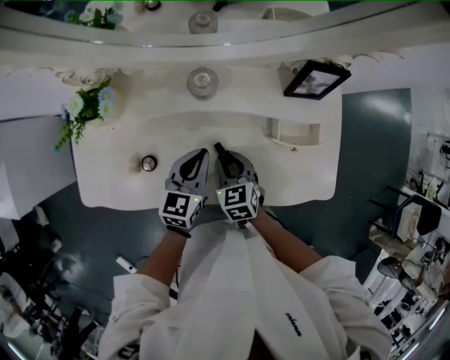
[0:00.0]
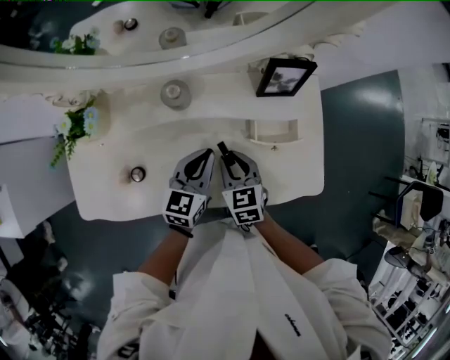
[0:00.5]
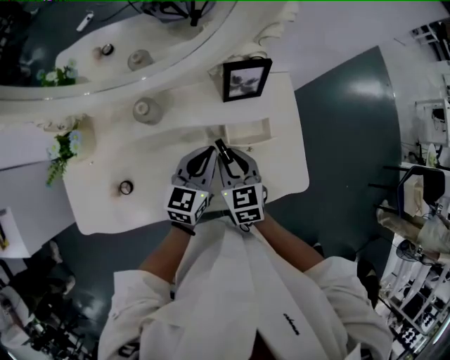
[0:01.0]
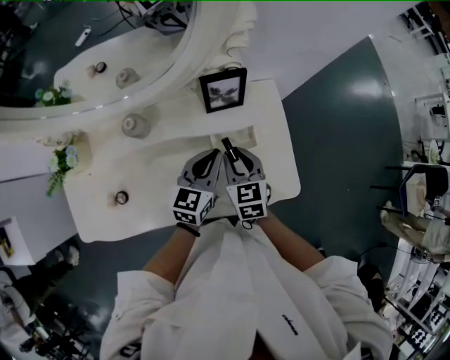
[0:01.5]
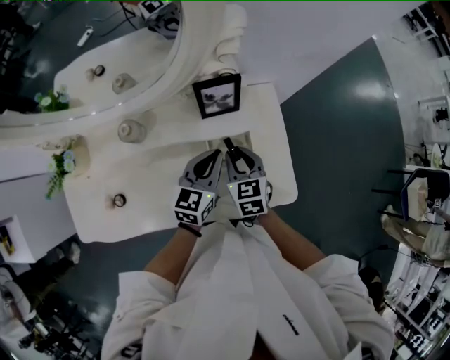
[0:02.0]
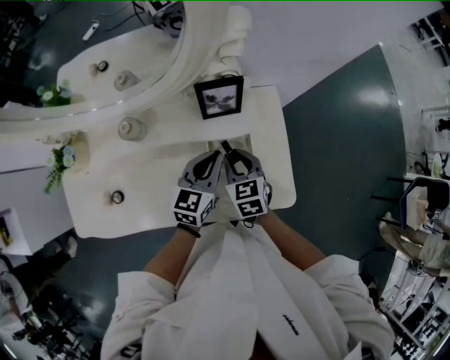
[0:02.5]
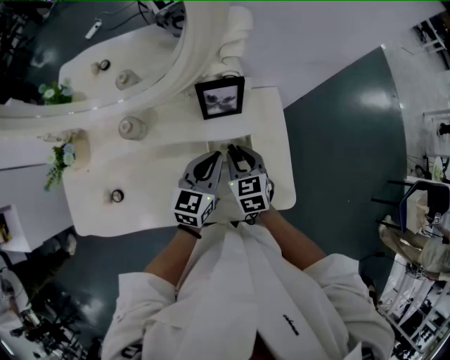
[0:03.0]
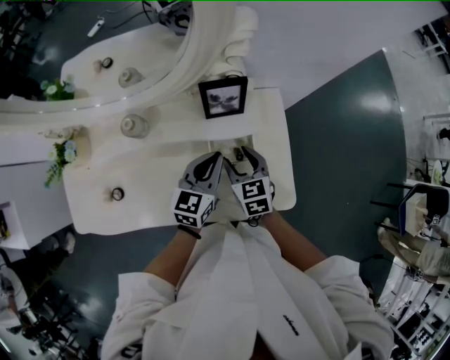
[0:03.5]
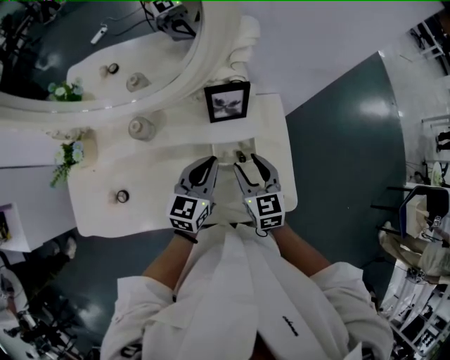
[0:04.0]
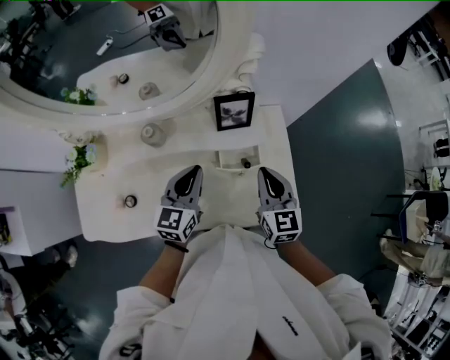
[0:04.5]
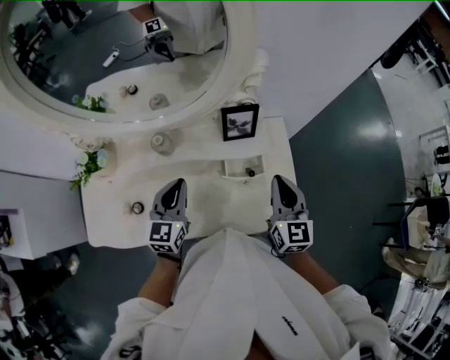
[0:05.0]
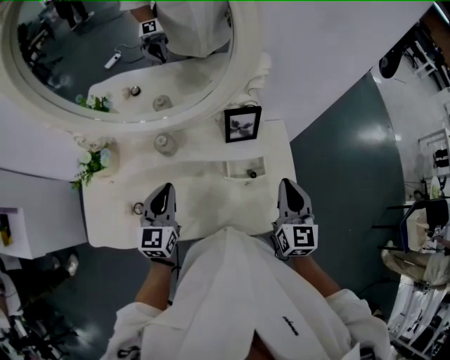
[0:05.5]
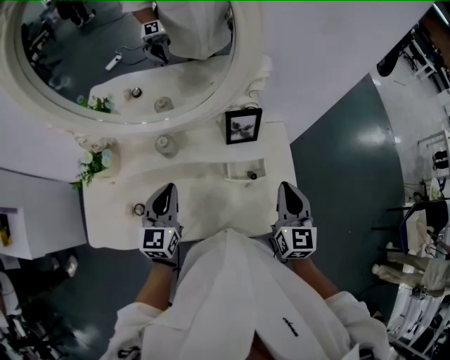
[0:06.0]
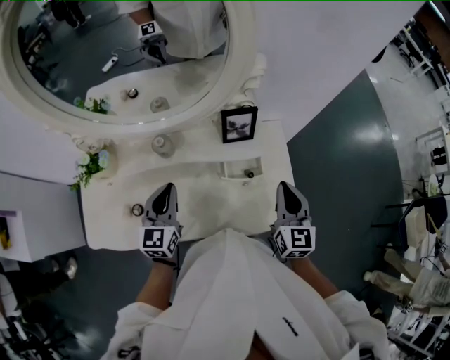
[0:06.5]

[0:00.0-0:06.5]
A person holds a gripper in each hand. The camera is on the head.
0:00.0 to 0:02.0: The right gripper heads to the right, forward and upward, covering some 25 cm; the left gripper is displaced to the right by about 25 cm.
0:02.0 to 0:04.5: The left gripper heads to the left and upward, covering approximately 10 cm, while the right gripper travels upward by some 10 cm, and opens, then closes once more.
0:04.5 to 0:06.5: The right gripper changes place by some 5 cm; the left gripper moves to the left, some 10 cm.

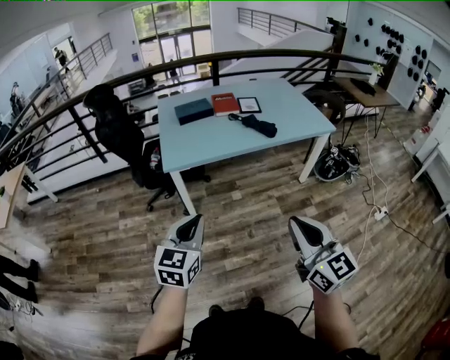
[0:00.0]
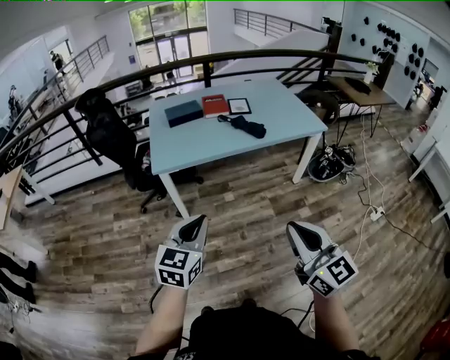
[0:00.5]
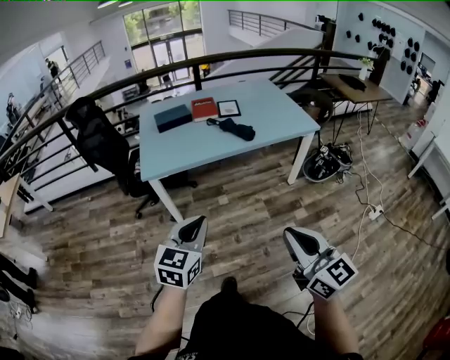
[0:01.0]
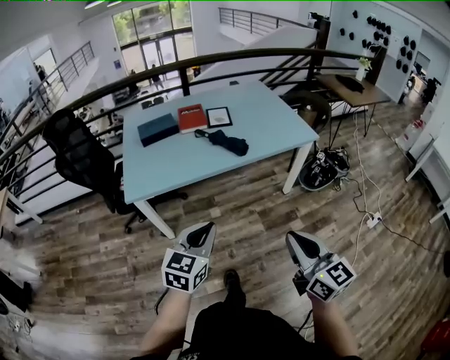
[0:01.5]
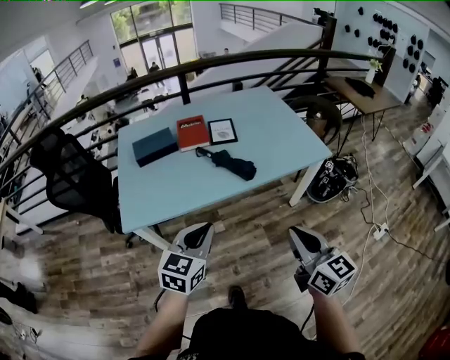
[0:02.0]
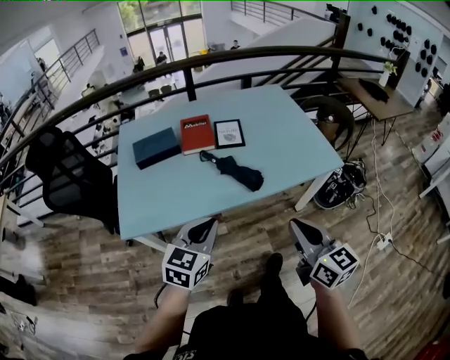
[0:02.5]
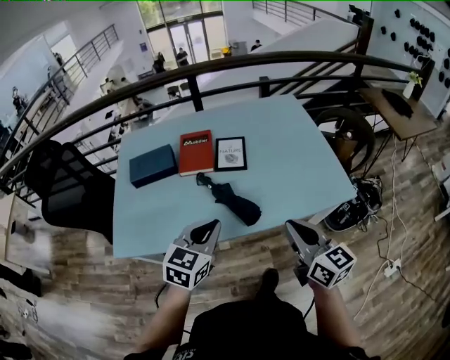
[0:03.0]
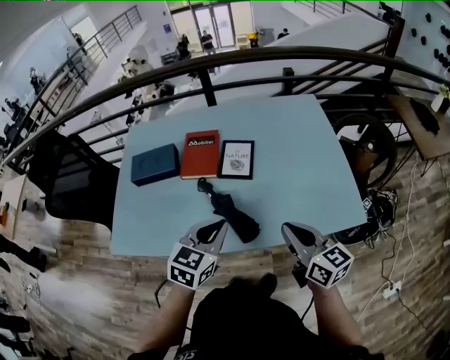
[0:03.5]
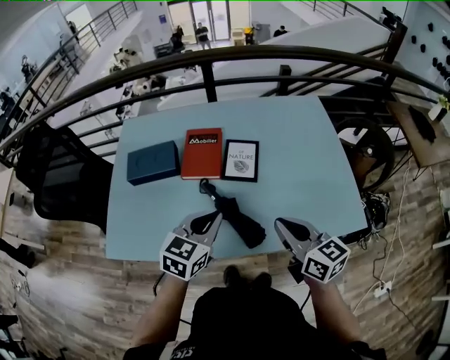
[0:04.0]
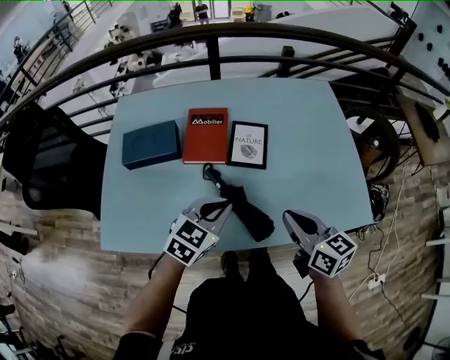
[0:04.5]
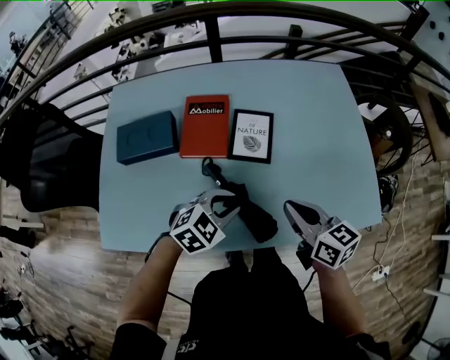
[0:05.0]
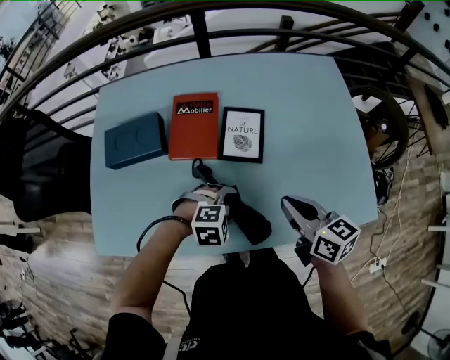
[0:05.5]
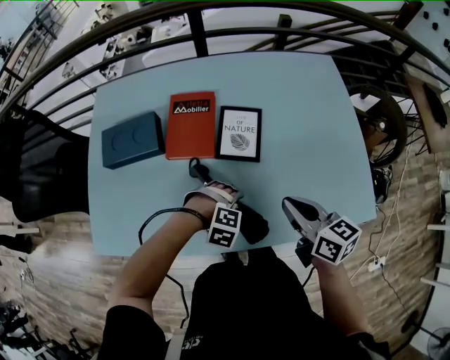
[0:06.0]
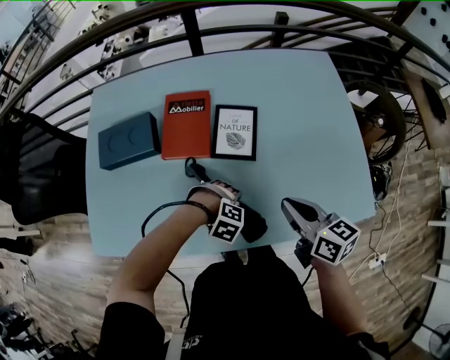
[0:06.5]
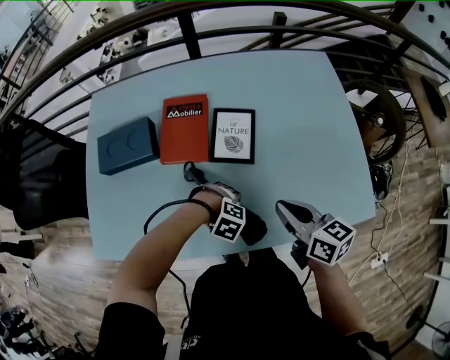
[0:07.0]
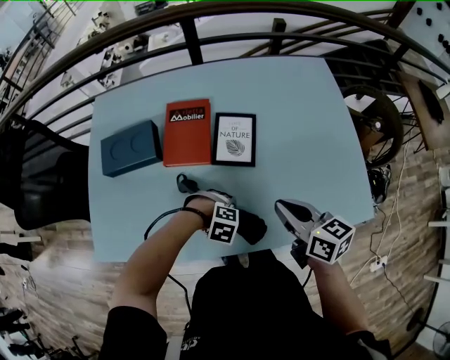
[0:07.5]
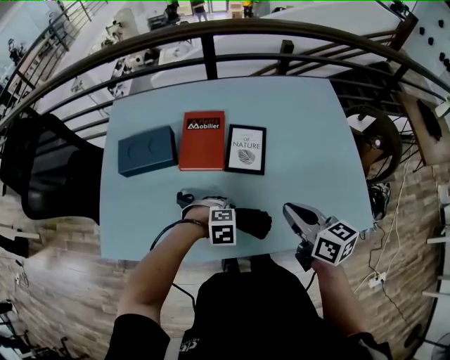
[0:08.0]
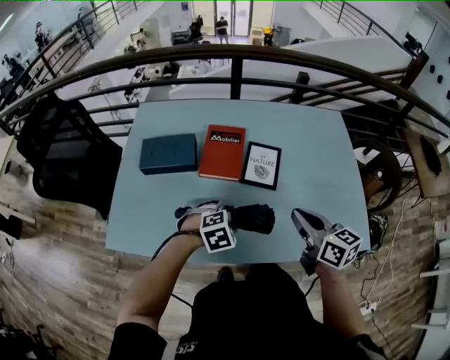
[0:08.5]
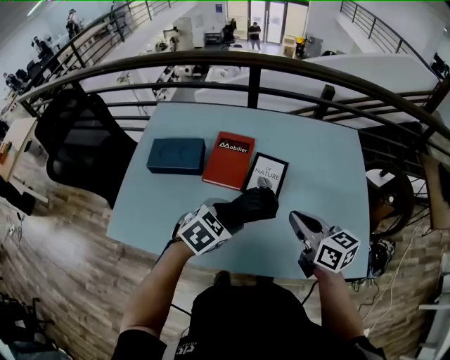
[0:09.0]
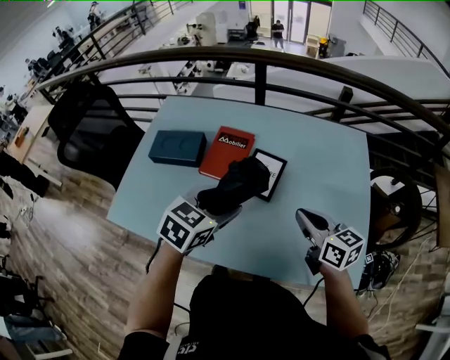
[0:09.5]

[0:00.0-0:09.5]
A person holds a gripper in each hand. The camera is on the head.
0:00.0 to 0:02.0: The grippers both shift forward and to the right by approximately 40 cm.
0:02.0 to 0:04.0: Both grippers travel together forward, approximately 40 cm. The right gripper rotates about 30 degrees.
0:04.0 to 0:05.5: The left gripper moves downward, about 20 cm, points its fingers approximately 40 degrees further downward, and opens its fingers. The right gripper heads forward and downward, covering about 15 cm.
0:05.5 to 0:07.5: The left gripper goes about 5 cm downward, and turns by roughly 20 degrees.
0:07.5 to 0:09.5: The left gripper travels upward by approximately 30 cm, and angles its fingers upward, by some 40 degrees. The right gripper moves roughly 10 cm.

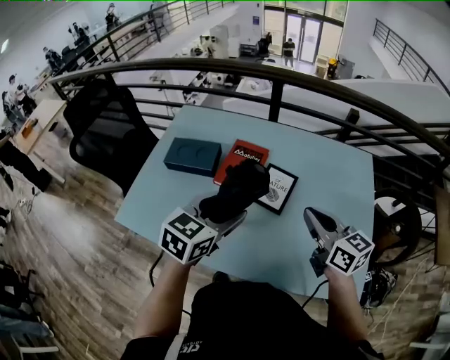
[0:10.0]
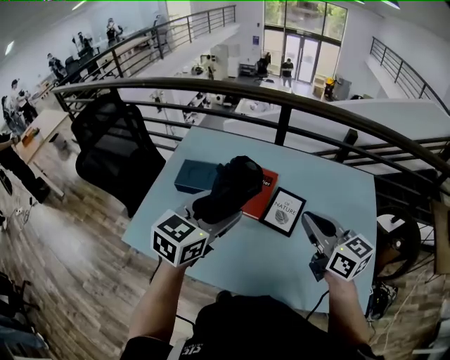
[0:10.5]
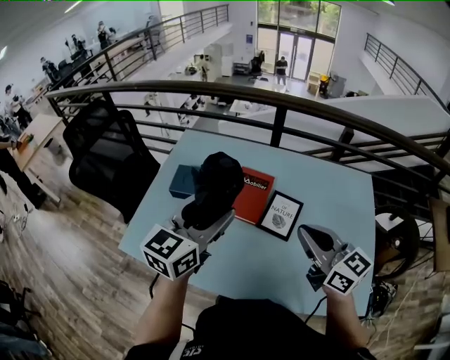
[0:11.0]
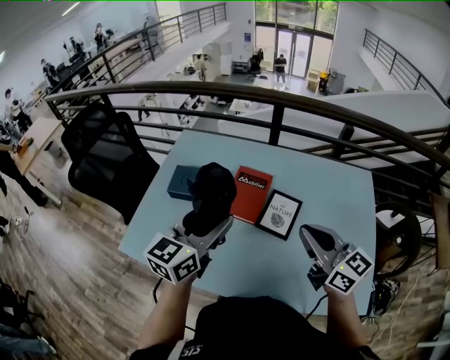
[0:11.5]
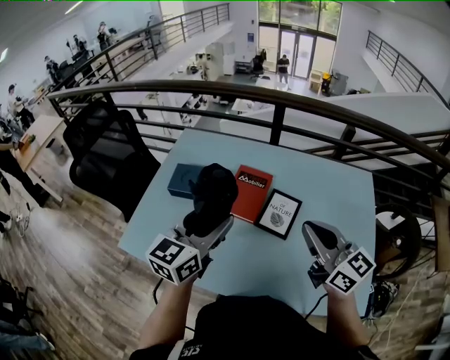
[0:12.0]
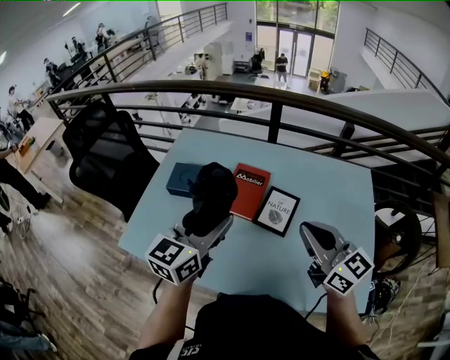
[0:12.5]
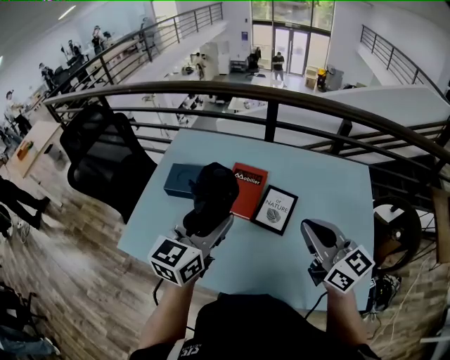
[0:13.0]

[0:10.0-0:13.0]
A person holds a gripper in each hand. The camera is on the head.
0:10.0 to 0:11.5: The left gripper is displaced to the left, upward and forward by roughly 10 cm, and rotates roughly 20 degrees, while the right gripper is displaced to the left and upward by some 10 cm.
0:11.5 to 0:13.0: The grippers stay close to where they were, moving slightly.

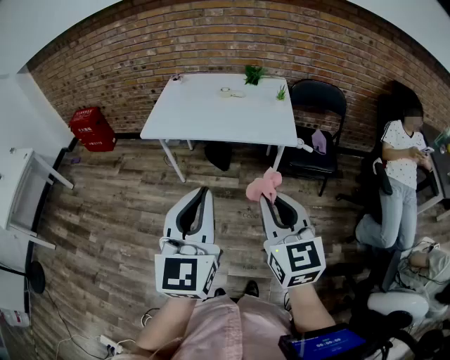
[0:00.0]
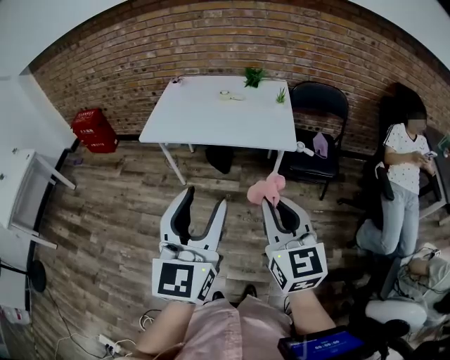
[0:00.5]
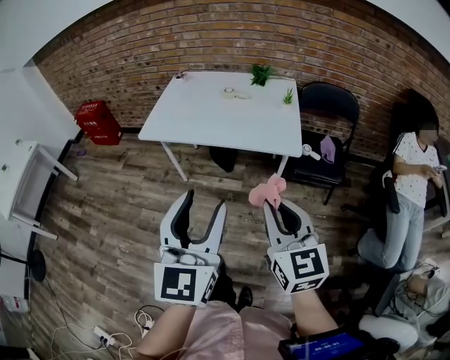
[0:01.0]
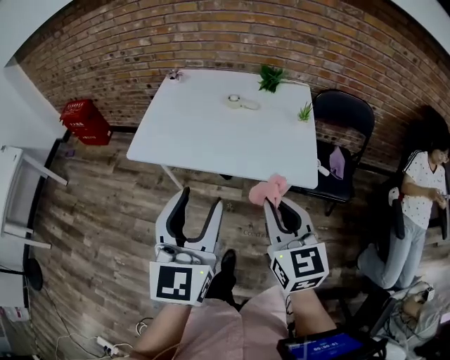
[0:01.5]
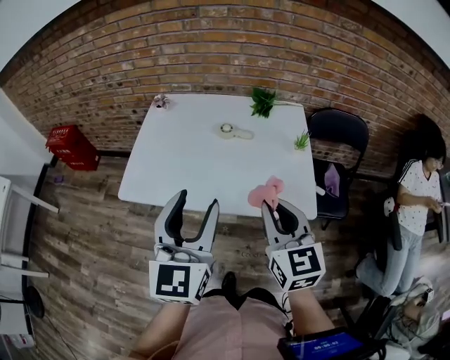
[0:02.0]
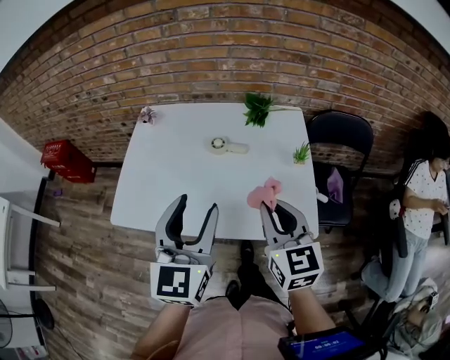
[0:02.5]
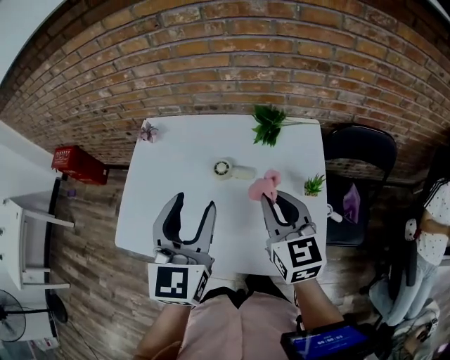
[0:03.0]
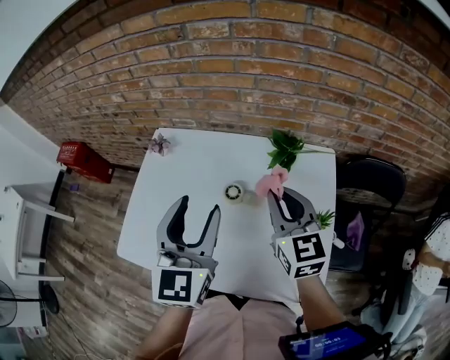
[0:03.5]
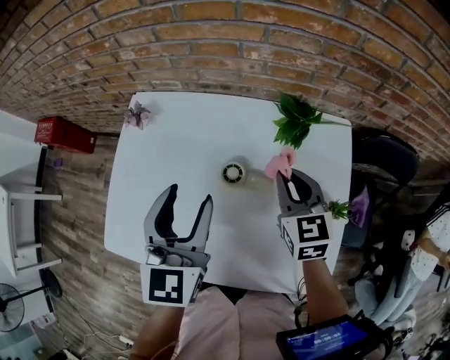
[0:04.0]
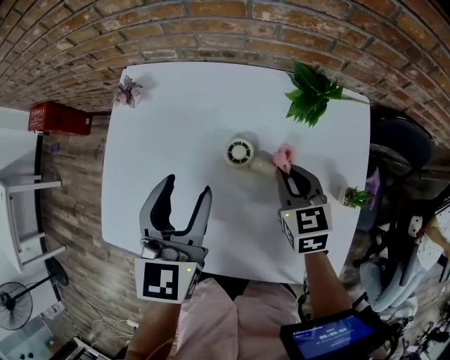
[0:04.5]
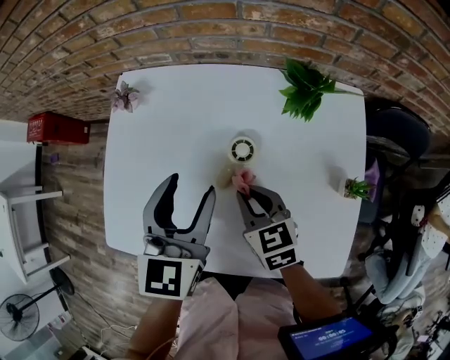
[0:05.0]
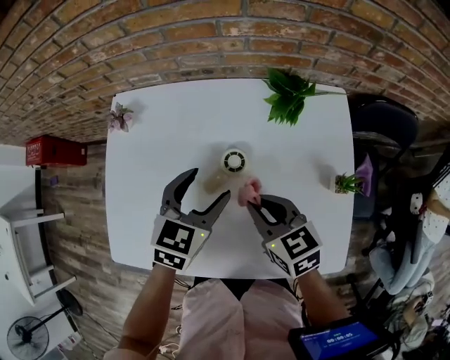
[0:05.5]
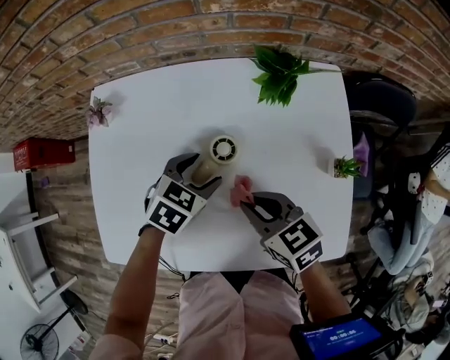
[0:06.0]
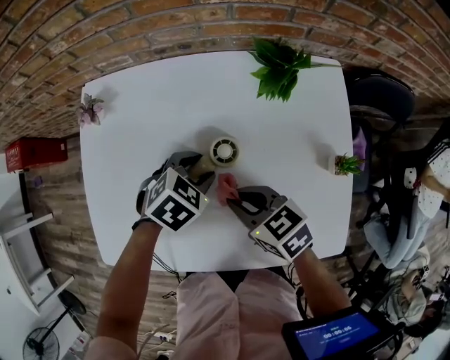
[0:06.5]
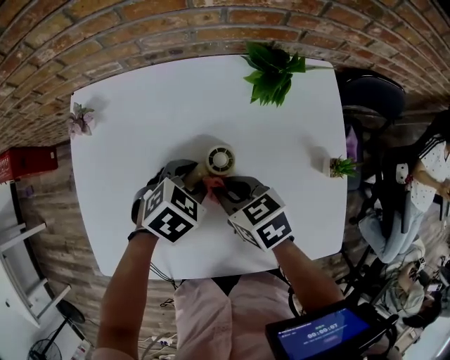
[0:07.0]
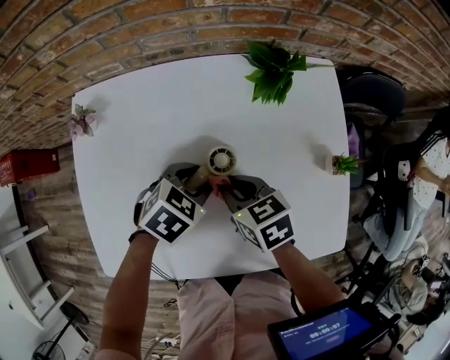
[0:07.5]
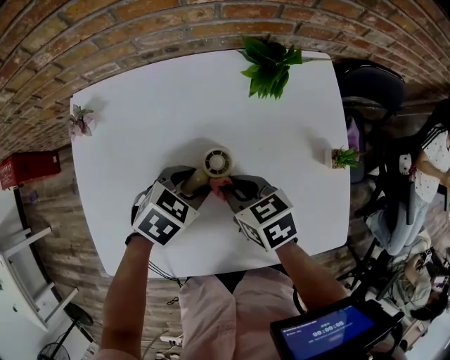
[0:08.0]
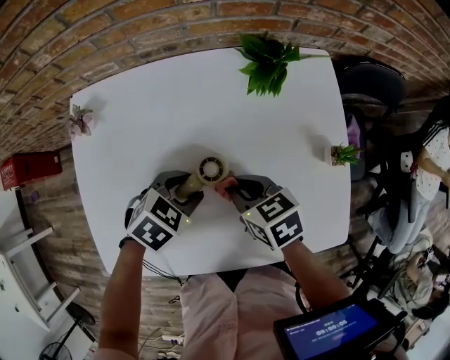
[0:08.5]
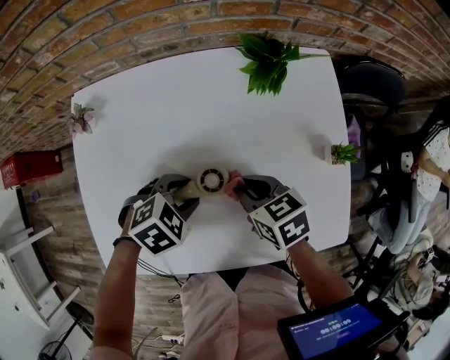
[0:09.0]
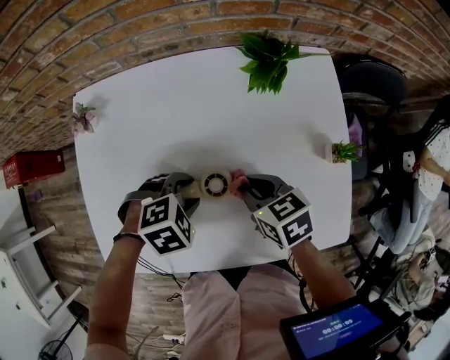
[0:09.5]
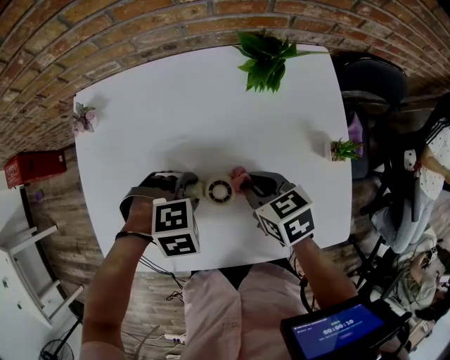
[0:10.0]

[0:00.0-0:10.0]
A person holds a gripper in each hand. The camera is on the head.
0:00.0 to 0:02.0: Both grippers travel together forward, about 35 cm. The left gripper opens.
0:02.0 to 0:04.0: The grippers both shift forward by about 35 cm.
0:04.0 to 0:06.0: The left gripper travels downward by roughly 20 cm, and tilts its fingers approximately 40 degrees downward. The right gripper goes roughly 15 cm backward, to the left and downward, and turns by about 30 degrees.
0:06.0 to 0:08.0: The right gripper ends up approximately 5 cm from where it was.
0:08.0 to 0:10.0: The left gripper rolls clockwise, seen from behind, by approximately 40 degrees.
